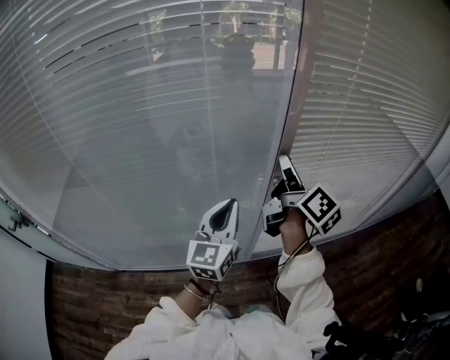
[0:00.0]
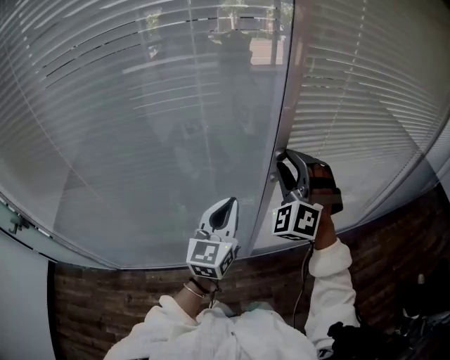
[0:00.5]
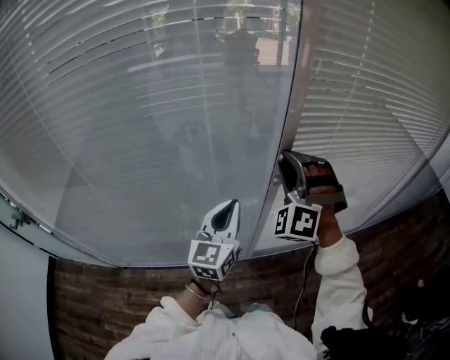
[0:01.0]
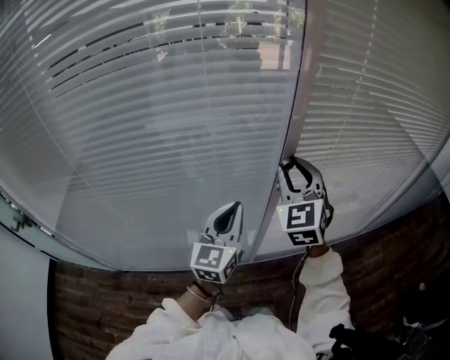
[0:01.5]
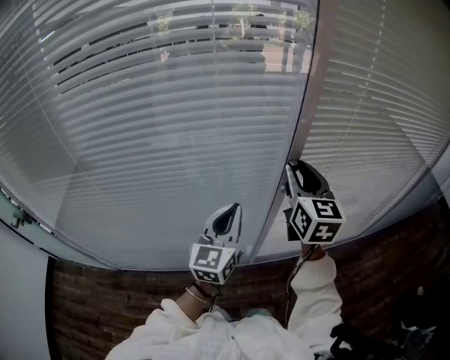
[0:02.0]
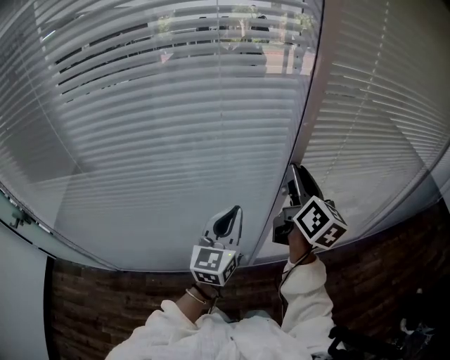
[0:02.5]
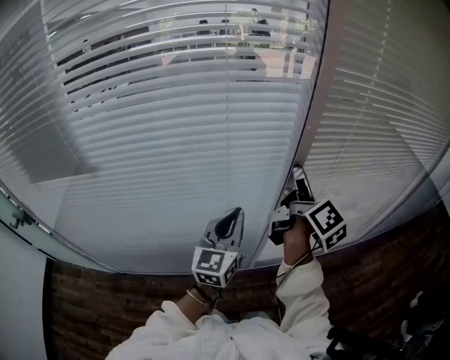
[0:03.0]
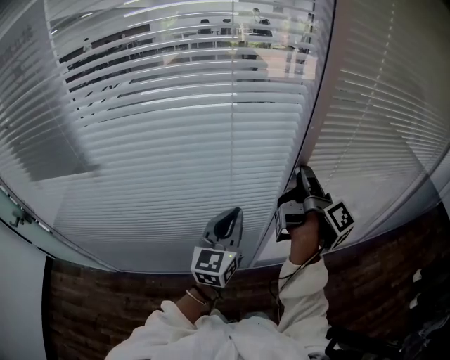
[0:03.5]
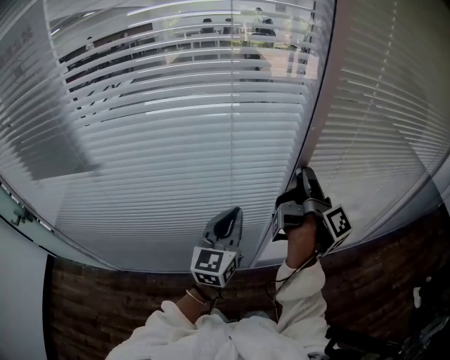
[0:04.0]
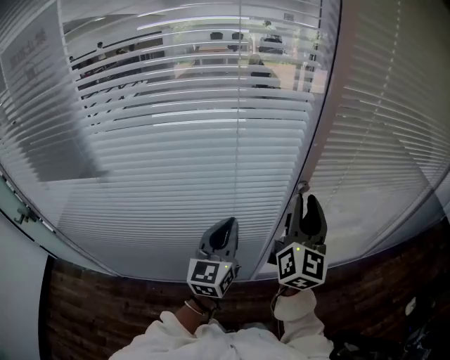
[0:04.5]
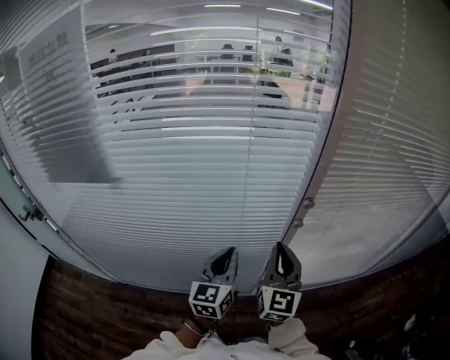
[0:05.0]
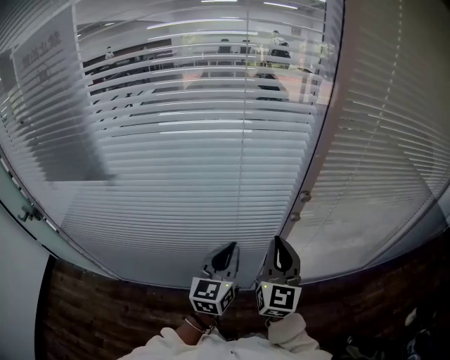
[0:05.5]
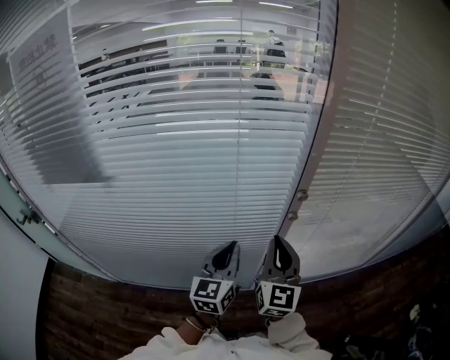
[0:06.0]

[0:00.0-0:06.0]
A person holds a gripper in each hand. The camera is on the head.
0.0 to 2.0 s: The right gripper rolls counterclockwise, seen from behind, by roughly 50 degrees.
2.0 to 4.0 s: The right gripper rolls clockwise, seen from behind, by roughly 90 degrees.
4.0 to 6.0 s: The right gripper is displaced backward, to the left and downward by roughly 15 cm, twists about 90 degrees counterclockwise, seen from behind, and closes.

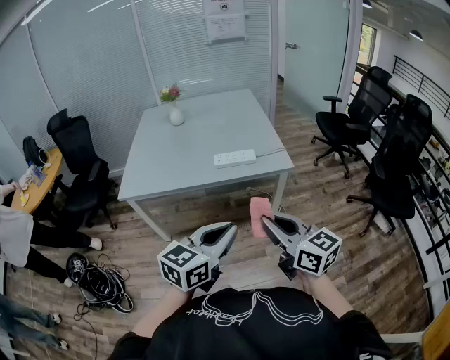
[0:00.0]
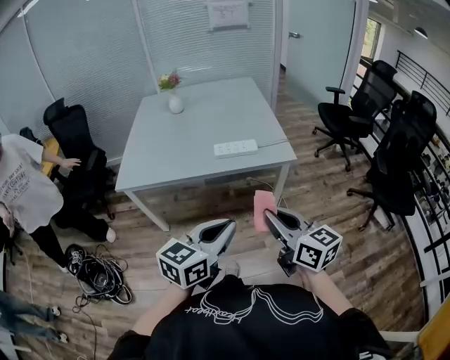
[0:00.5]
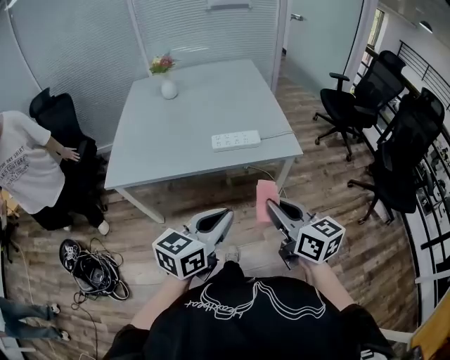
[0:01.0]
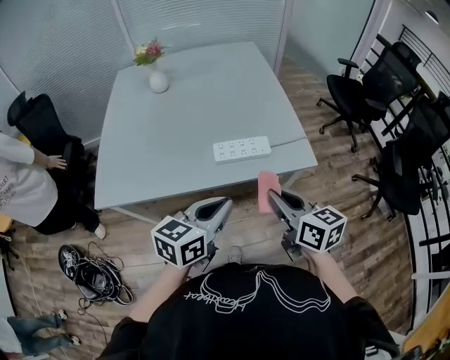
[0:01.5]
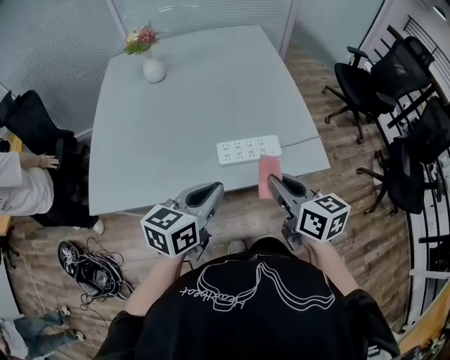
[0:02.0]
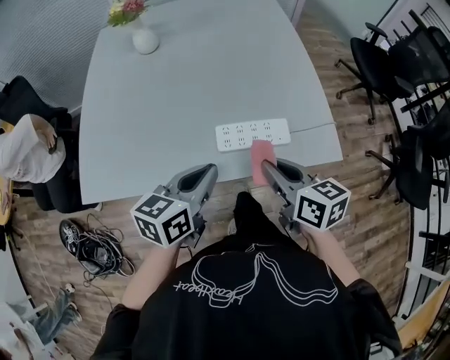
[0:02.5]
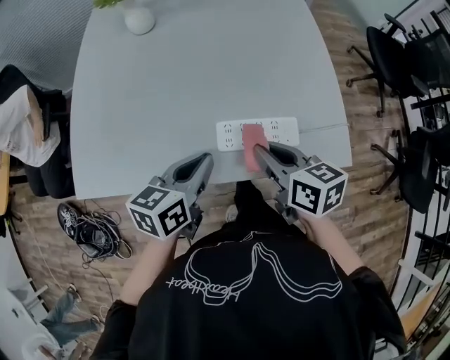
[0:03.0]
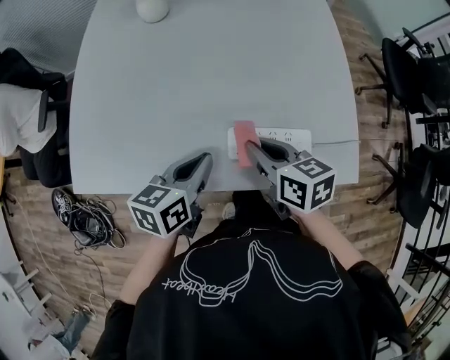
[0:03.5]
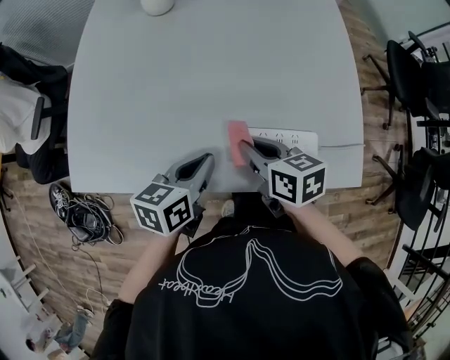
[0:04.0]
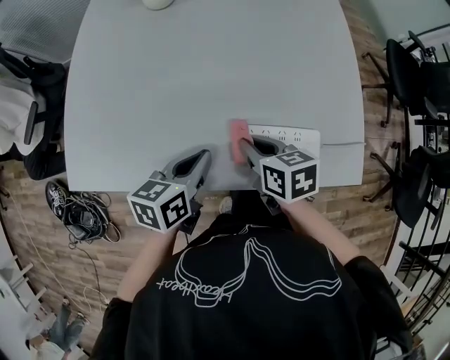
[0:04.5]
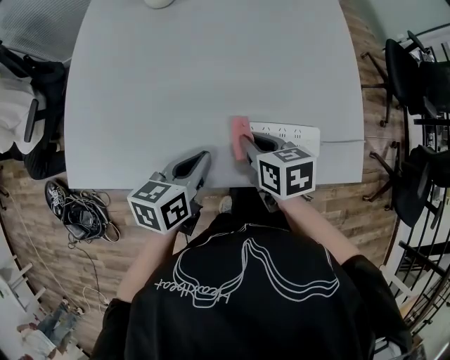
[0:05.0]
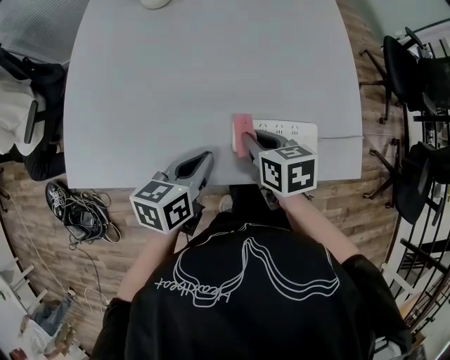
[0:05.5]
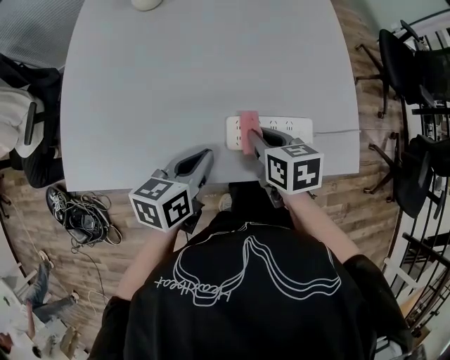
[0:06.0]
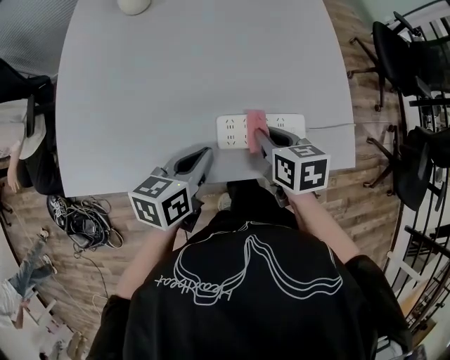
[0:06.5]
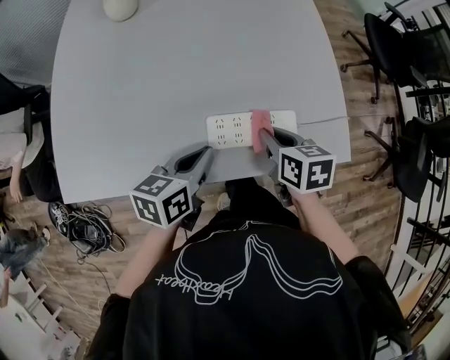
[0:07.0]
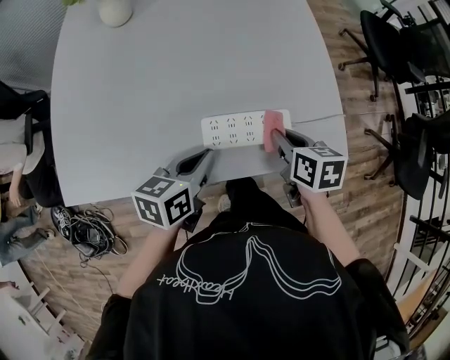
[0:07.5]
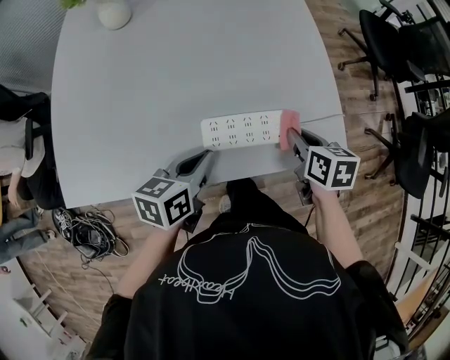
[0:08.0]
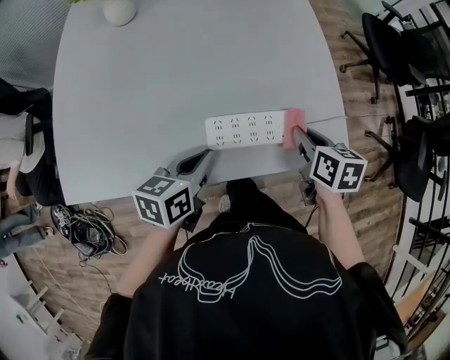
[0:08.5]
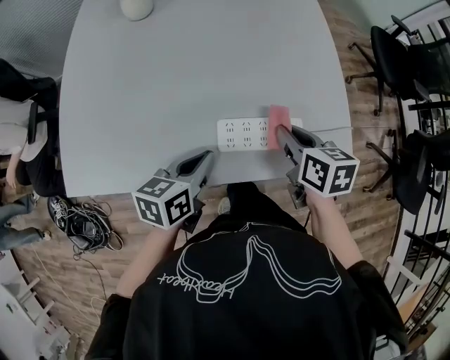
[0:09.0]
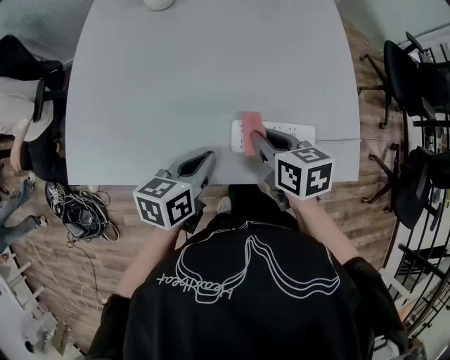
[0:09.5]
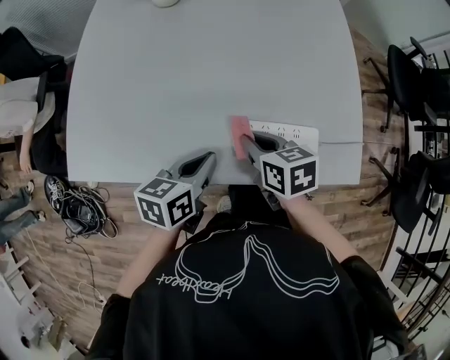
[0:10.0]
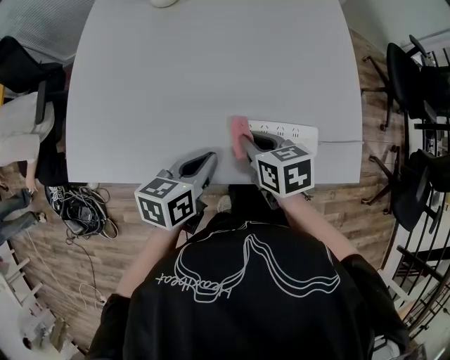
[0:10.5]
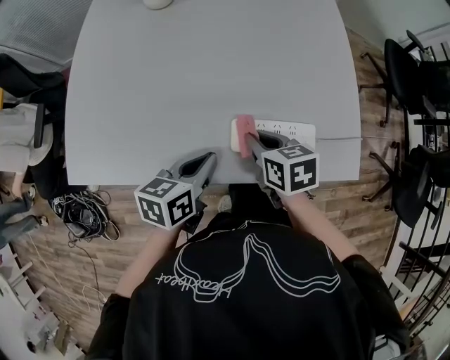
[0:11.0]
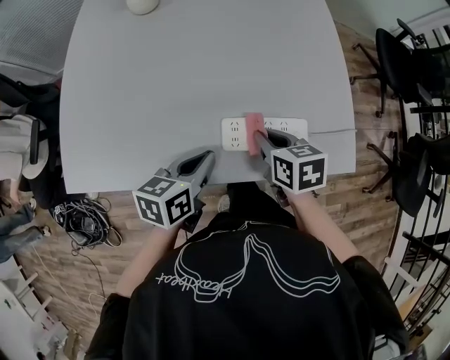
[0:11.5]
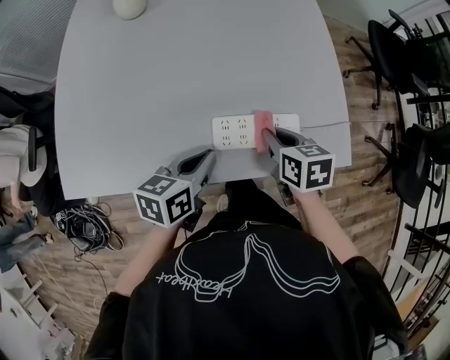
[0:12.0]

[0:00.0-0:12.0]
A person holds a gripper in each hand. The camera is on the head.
0.0 to 2.0 s: Both grippers move forward, about 40 cm. The right gripper changes its angle by some 20 degrees.
2.0 to 4.0 s: The right gripper is displaced forward, downward and to the left by about 25 cm, and rotates about 30 degrees, while the left gripper shifts about 20 cm forward and downward, and changes its angle by some 20 degrees.
4.0 to 6.0 s: The right gripper changes place by about 5 cm.
6.0 to 8.0 s: The right gripper goes approximately 15 cm to the right; the left gripper travels to the right by roughly 5 cm.
8.0 to 10.0 s: The left gripper moves to the left, roughly 10 cm. The right gripper is displaced to the left by approximately 20 cm, and changes its angle by roughly 30 degrees.
10.0 to 12.0 s: The right gripper heads to the right, covering approximately 10 cm, while the left gripper is displaced to the right by some 5 cm.

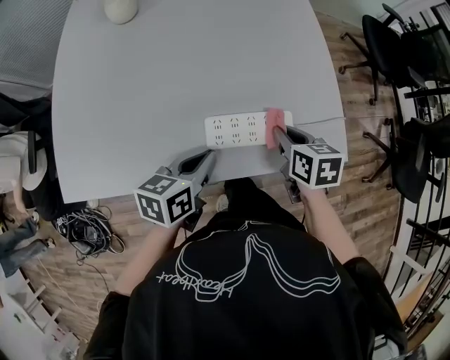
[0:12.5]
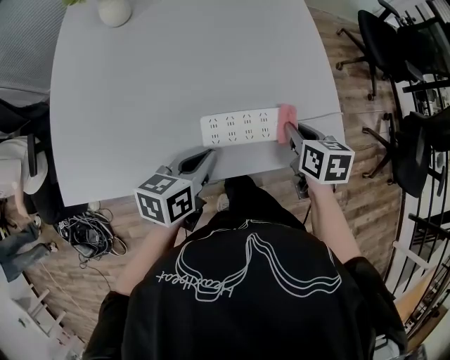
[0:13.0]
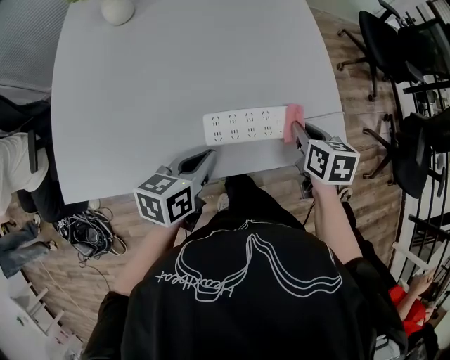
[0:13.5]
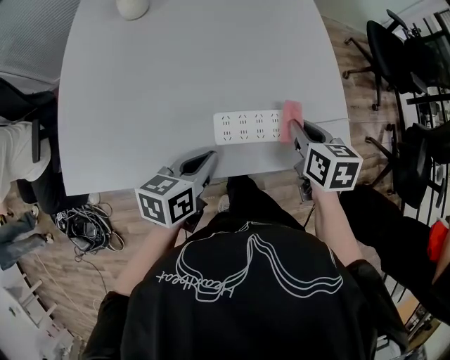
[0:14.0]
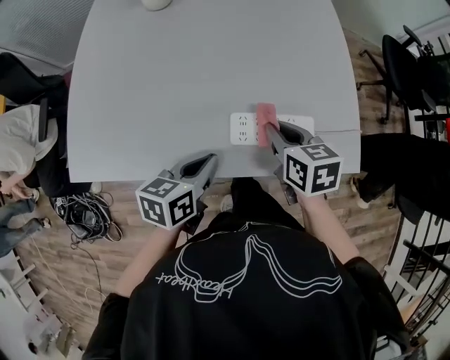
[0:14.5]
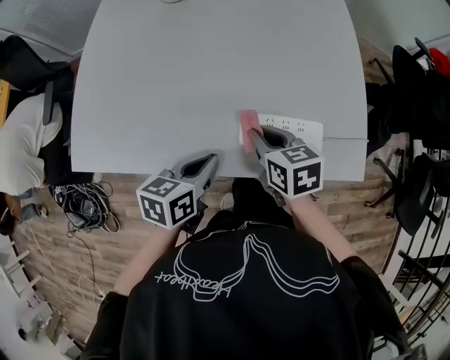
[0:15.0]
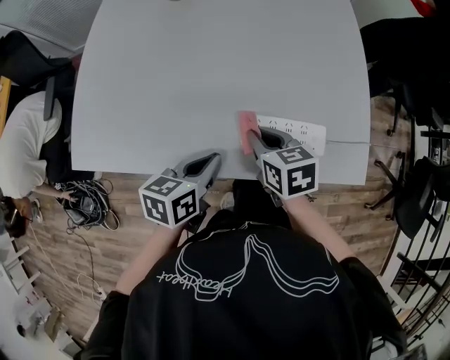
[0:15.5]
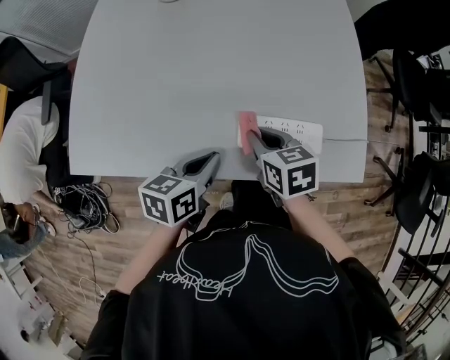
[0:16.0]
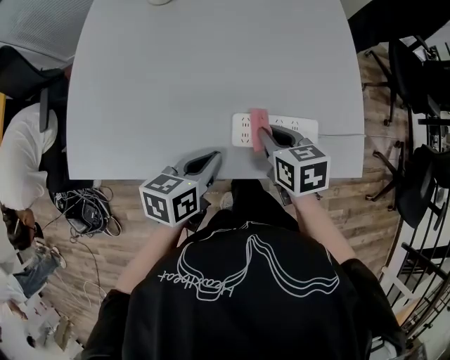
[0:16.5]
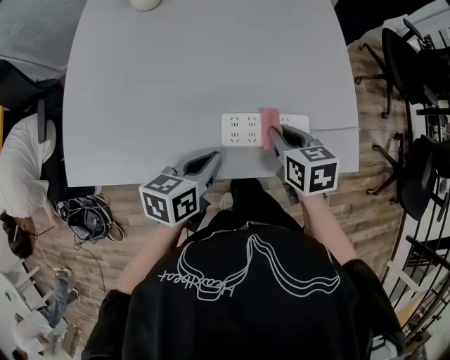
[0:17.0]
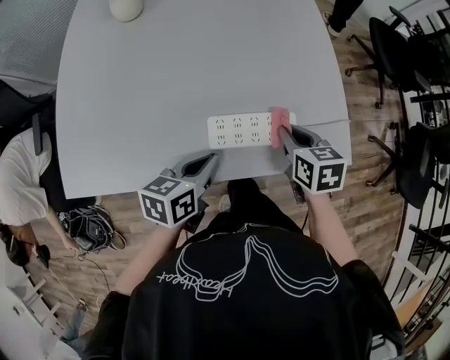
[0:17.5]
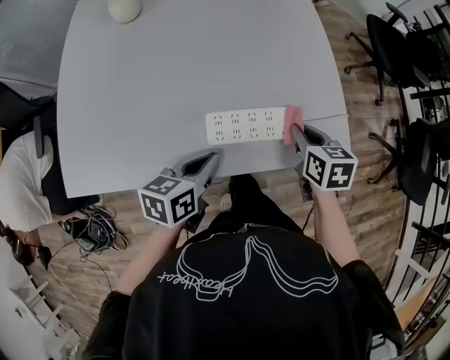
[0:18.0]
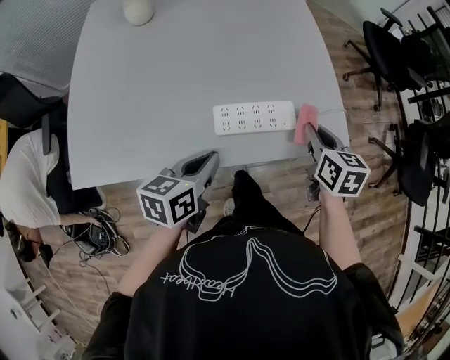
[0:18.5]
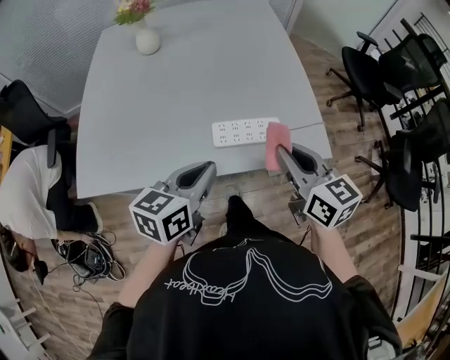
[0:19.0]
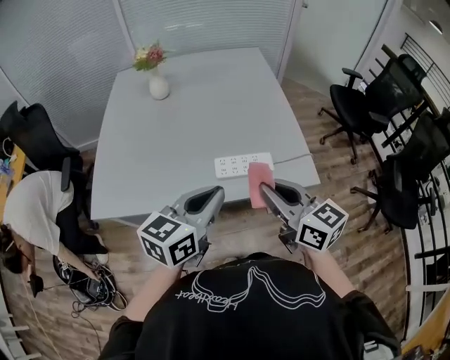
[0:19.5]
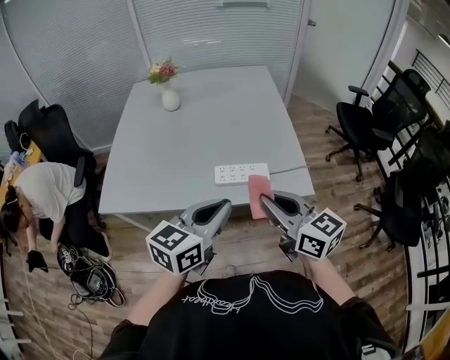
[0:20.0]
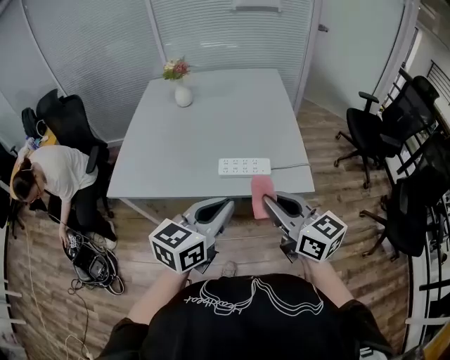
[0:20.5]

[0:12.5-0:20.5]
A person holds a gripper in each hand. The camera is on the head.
12.5 to 14.5 s: The right gripper moves to the left, about 10 cm. Meanwhile the left gripper changes place by roughly 5 cm.
14.5 to 16.5 s: The right gripper reaches about 10 cm to the left, then returns.
16.5 to 18.5 s: The right gripper travels to the right by some 20 cm, and changes its angle by roughly 30 degrees, while the left gripper changes place by roughly 5 cm.
18.5 to 20.5 s: The left gripper shifts some 30 cm upward, backward and to the right, and swivels approximately 30 degrees; the right gripper shifts some 35 cm backward and upward, and points its fingers some 30 degrees further upward.

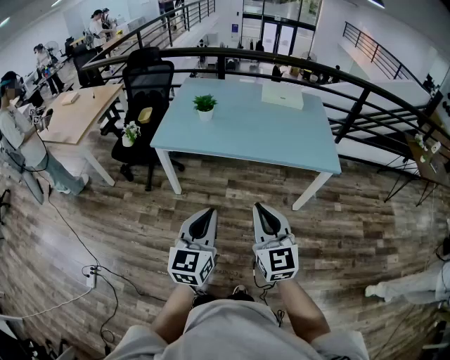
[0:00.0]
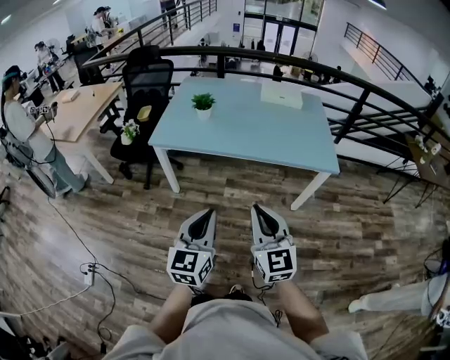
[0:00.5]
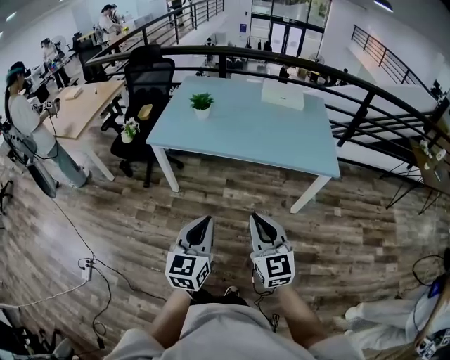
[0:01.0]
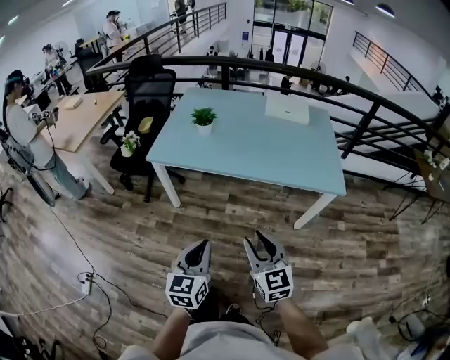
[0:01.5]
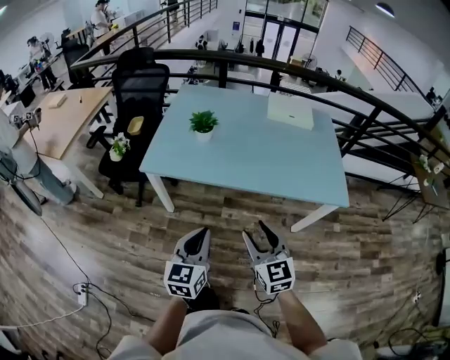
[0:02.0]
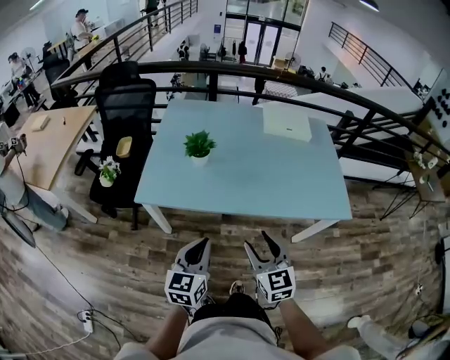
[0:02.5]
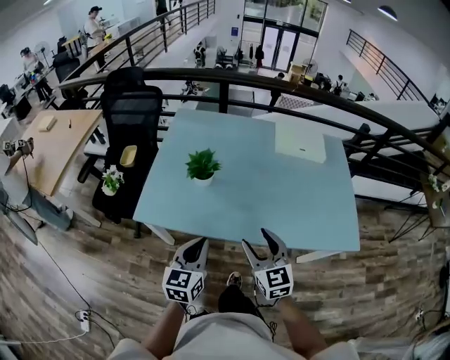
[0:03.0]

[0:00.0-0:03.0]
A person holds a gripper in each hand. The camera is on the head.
0.0 to 1.5 s: The grippers both shift downward by roughly 10 cm.
1.5 to 3.0 s: Both grippers move forward, about 40 cm.
